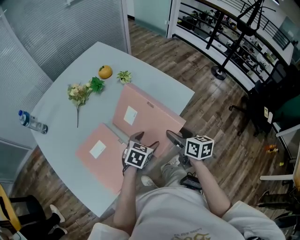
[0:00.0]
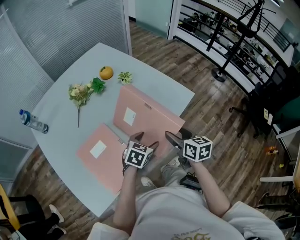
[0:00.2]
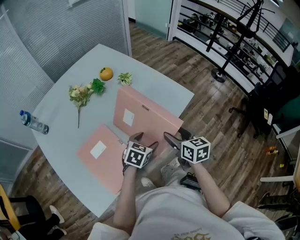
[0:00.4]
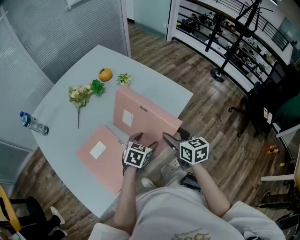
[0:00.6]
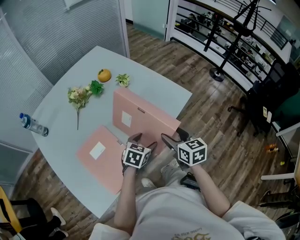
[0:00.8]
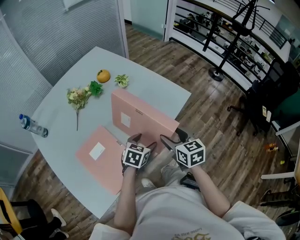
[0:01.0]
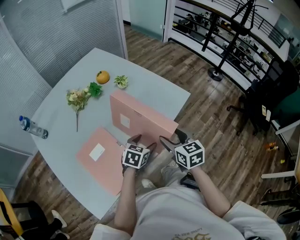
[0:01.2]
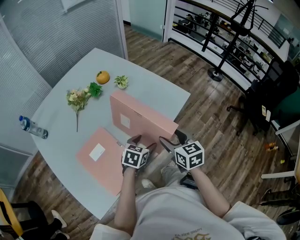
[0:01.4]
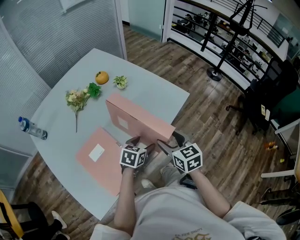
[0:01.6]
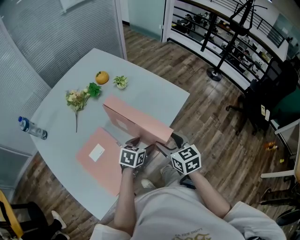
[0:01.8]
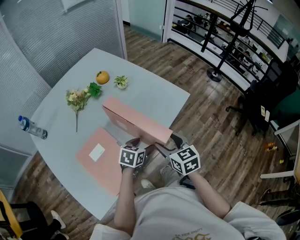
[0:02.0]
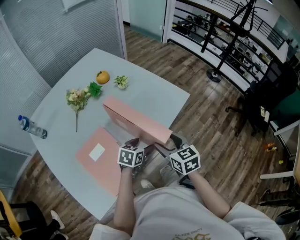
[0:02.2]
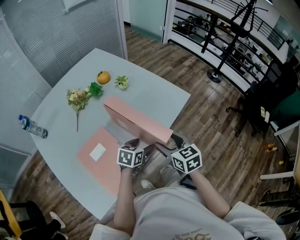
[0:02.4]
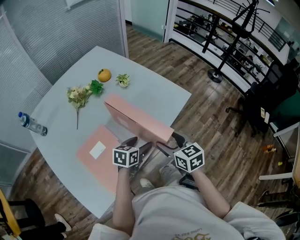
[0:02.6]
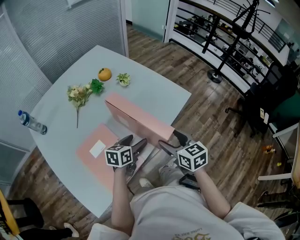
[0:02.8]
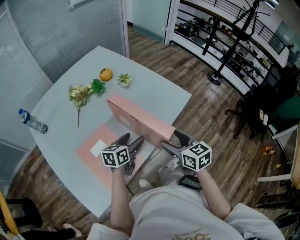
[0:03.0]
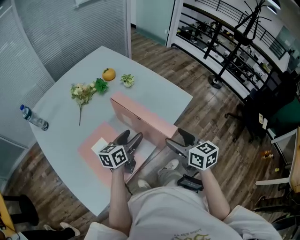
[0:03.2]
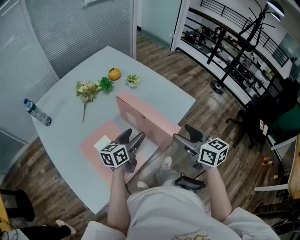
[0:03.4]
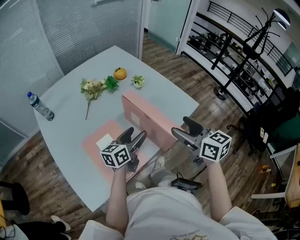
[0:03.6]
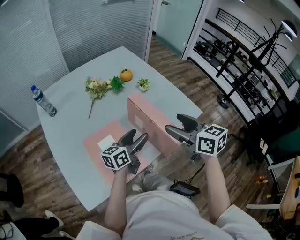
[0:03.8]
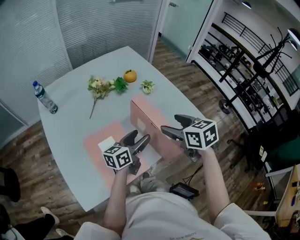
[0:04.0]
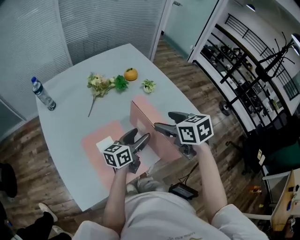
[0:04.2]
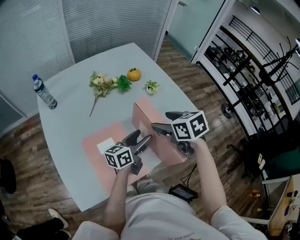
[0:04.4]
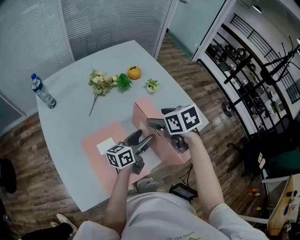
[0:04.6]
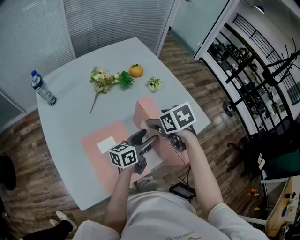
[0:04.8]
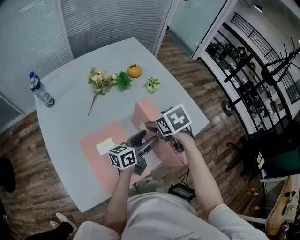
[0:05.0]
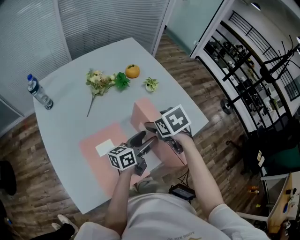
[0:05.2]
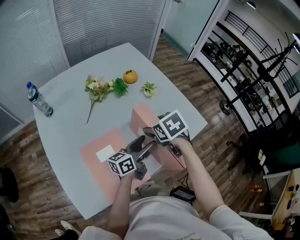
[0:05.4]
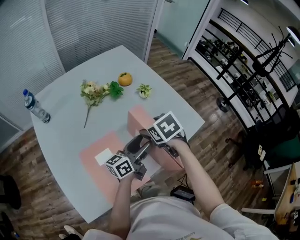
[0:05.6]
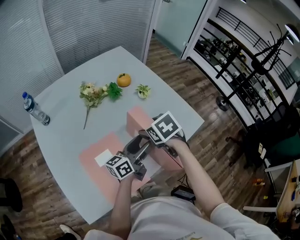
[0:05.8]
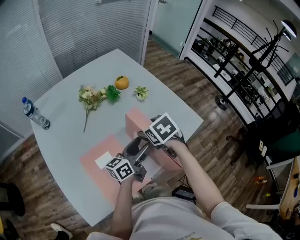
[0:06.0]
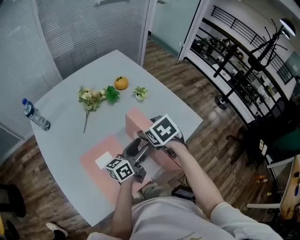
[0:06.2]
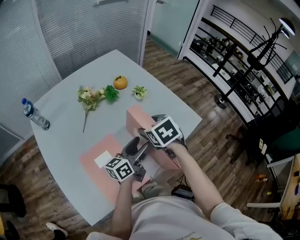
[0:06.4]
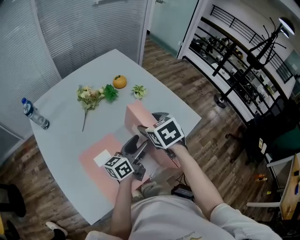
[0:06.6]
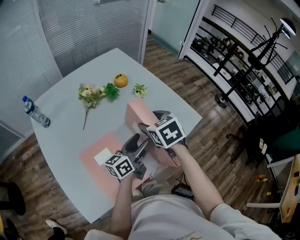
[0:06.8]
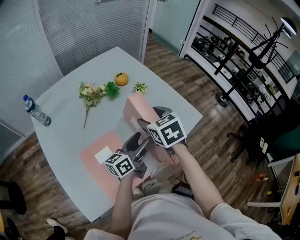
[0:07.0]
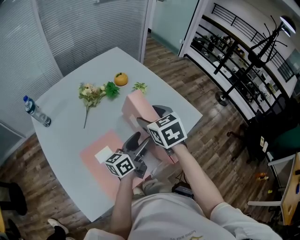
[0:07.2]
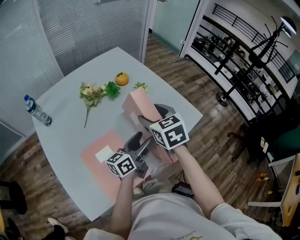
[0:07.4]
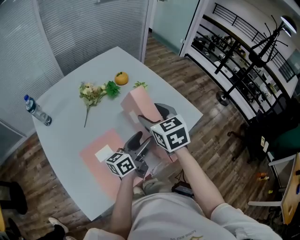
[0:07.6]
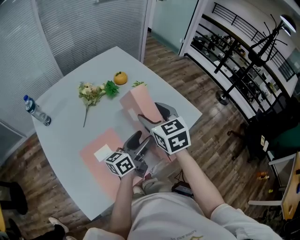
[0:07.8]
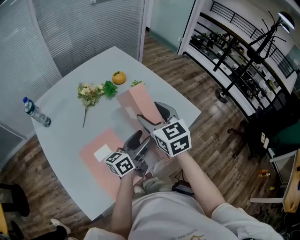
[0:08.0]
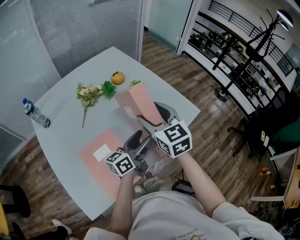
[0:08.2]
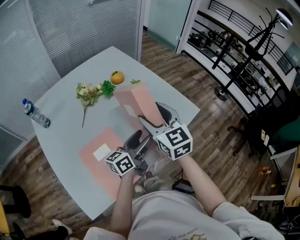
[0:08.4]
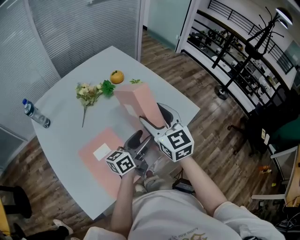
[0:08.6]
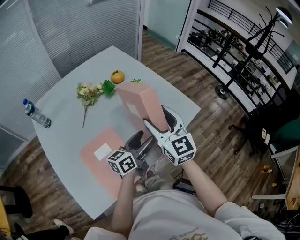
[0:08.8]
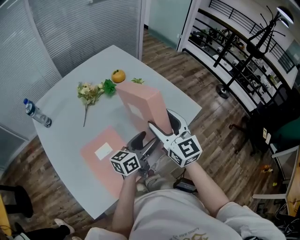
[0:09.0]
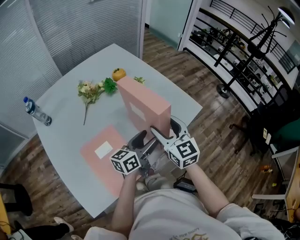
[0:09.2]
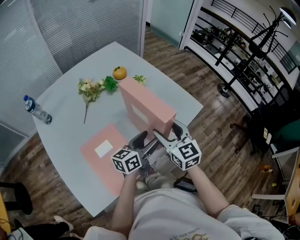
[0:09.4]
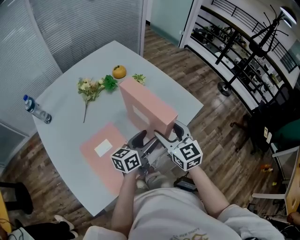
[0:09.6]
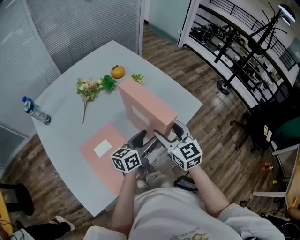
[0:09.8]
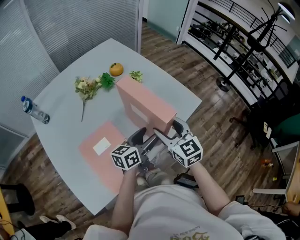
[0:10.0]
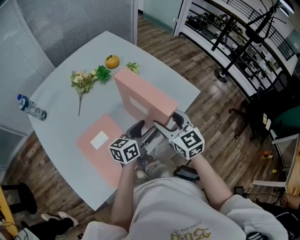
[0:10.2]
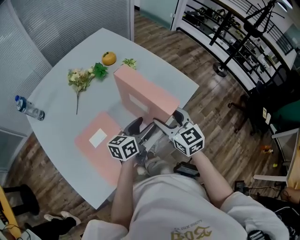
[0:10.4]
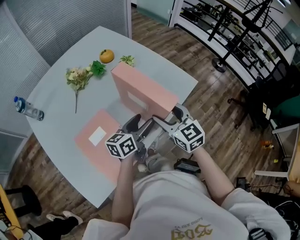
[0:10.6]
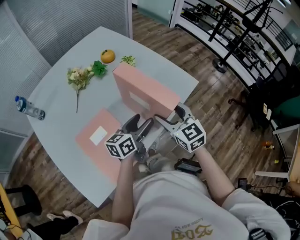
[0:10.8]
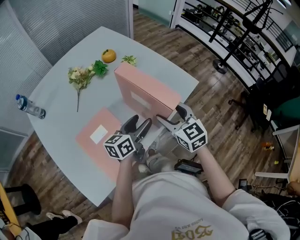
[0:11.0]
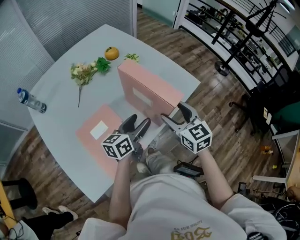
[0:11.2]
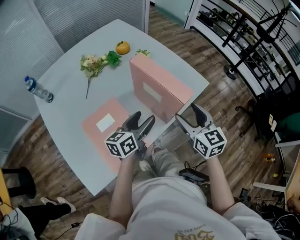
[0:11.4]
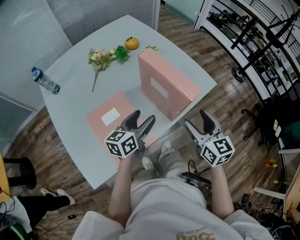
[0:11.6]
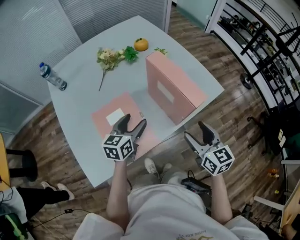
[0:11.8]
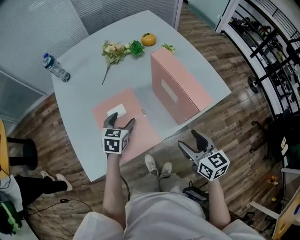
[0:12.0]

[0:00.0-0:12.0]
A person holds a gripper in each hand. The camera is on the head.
0:00.0 to 0:01.6: The right gripper shifts by roughly 5 cm, and changes its angle by some 20 degrees.
0:01.6 to 0:03.0: The left gripper heads to the left, covering some 5 cm, and rotates some 30 degrees.
0:03.0 to 0:04.4: The left gripper moves forward, about 5 cm, and rotates about 30 degrees, while the right gripper travels forward and to the left by approximately 20 cm, and changes its angle by roughly 30 degrees.
0:04.4 to 0:06.0: The right gripper changes place by about 5 cm.
0:06.0 to 0:07.6: The right gripper heads upward, covering about 10 cm, and turns by about 30 degrees.
0:07.6 to 0:09.0: The right gripper shifts approximately 5 cm to the right, and changes its angle by some 30 degrees.
0:09.0 to 0:10.4: The right gripper moves downward, roughly 10 cm.
0:10.4 to 0:12.0: The right gripper moves some 10 cm, and turns by approximately 20 degrees; the left gripper shifts by approximately 20 cm, and tilts its fingers about 30 degrees downward.

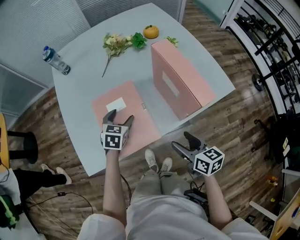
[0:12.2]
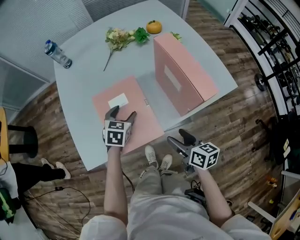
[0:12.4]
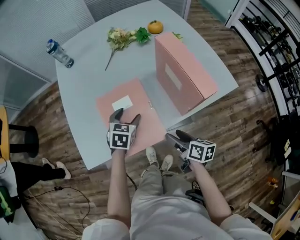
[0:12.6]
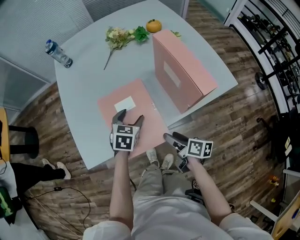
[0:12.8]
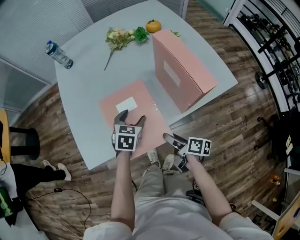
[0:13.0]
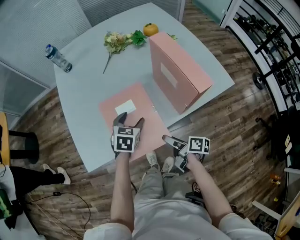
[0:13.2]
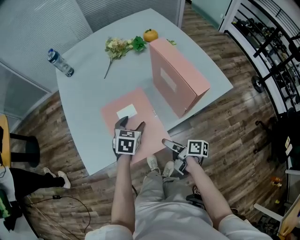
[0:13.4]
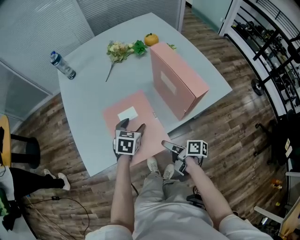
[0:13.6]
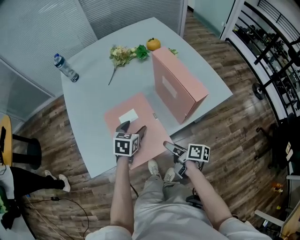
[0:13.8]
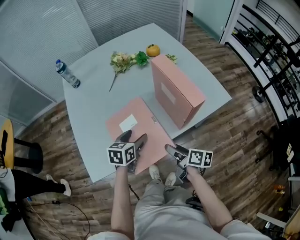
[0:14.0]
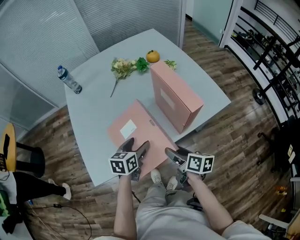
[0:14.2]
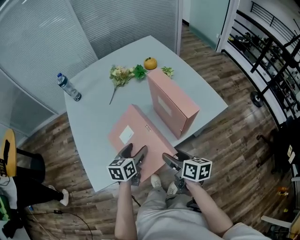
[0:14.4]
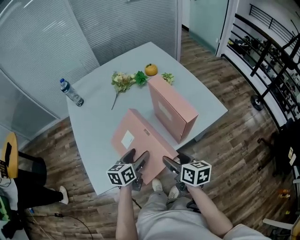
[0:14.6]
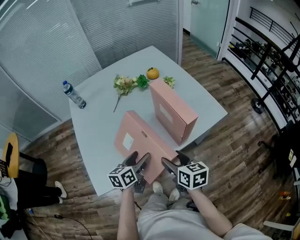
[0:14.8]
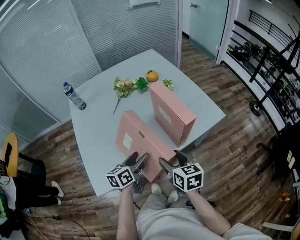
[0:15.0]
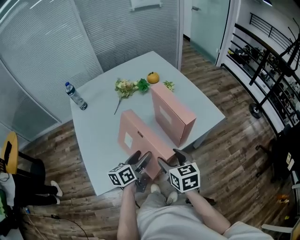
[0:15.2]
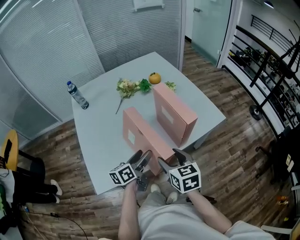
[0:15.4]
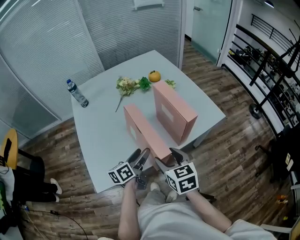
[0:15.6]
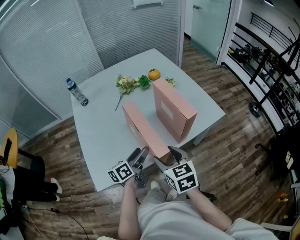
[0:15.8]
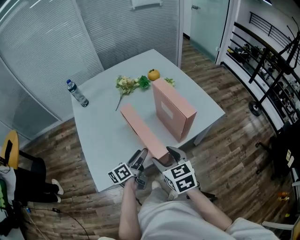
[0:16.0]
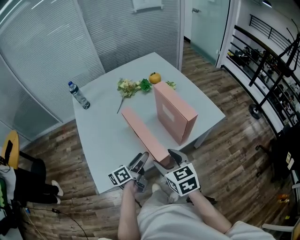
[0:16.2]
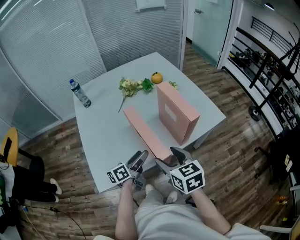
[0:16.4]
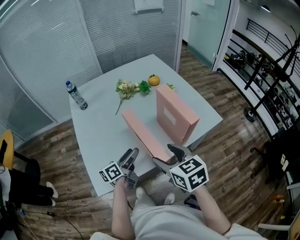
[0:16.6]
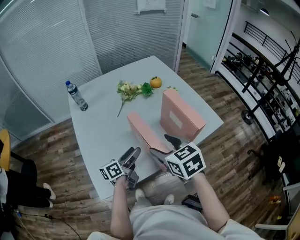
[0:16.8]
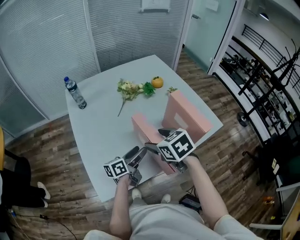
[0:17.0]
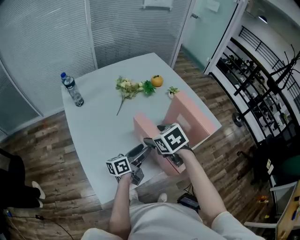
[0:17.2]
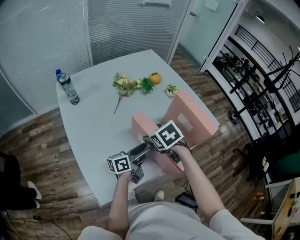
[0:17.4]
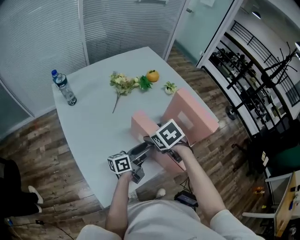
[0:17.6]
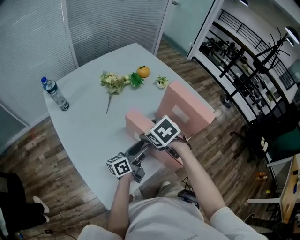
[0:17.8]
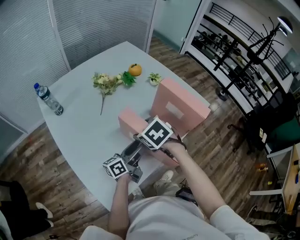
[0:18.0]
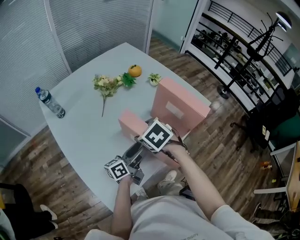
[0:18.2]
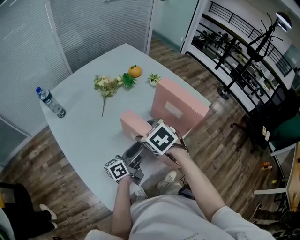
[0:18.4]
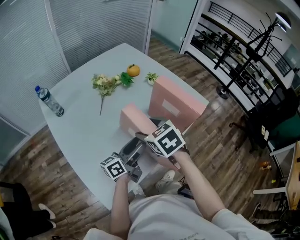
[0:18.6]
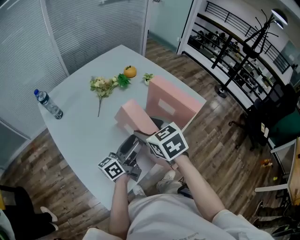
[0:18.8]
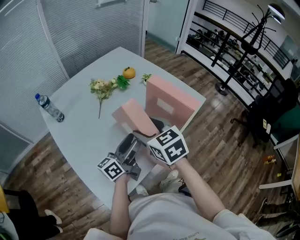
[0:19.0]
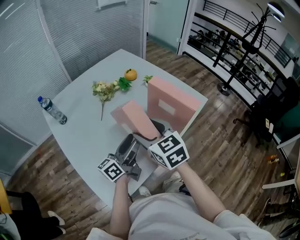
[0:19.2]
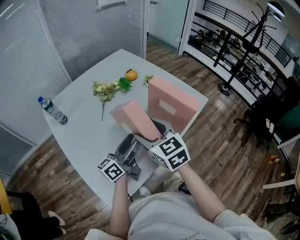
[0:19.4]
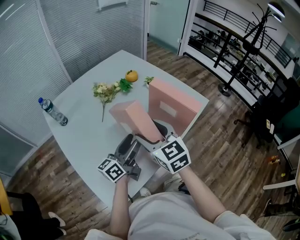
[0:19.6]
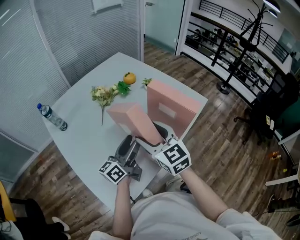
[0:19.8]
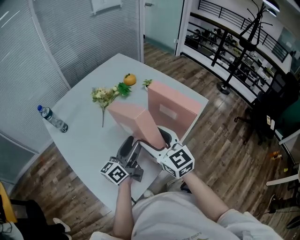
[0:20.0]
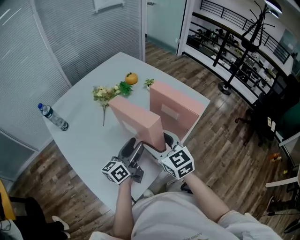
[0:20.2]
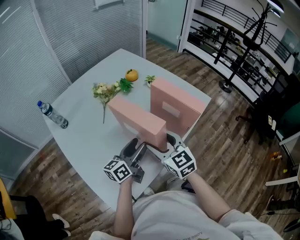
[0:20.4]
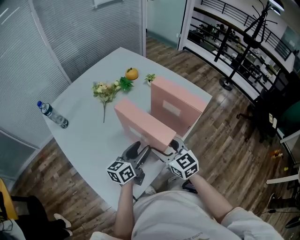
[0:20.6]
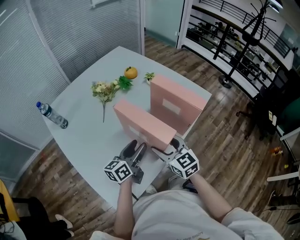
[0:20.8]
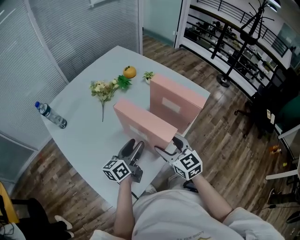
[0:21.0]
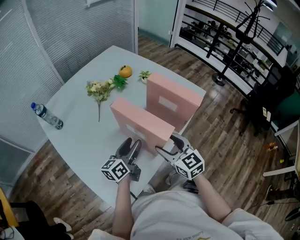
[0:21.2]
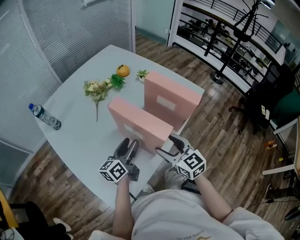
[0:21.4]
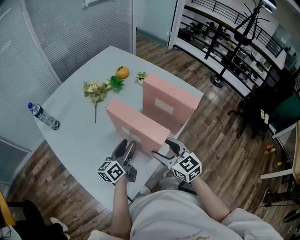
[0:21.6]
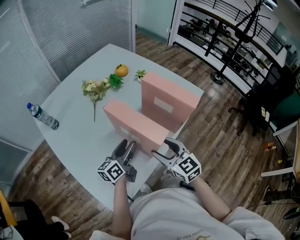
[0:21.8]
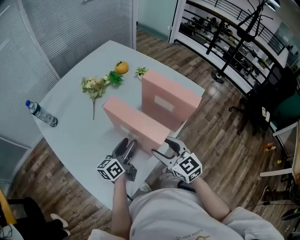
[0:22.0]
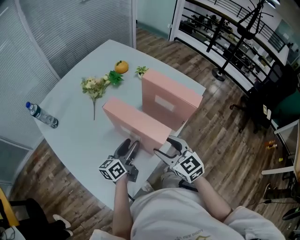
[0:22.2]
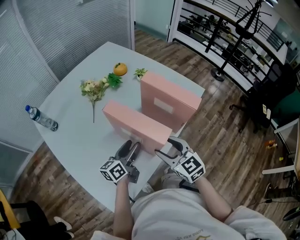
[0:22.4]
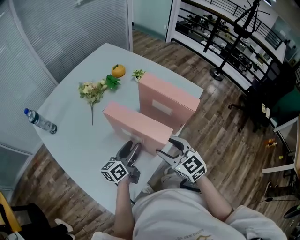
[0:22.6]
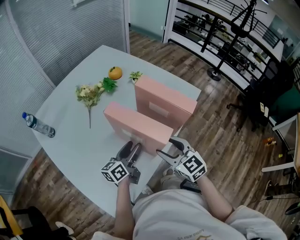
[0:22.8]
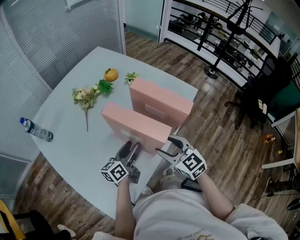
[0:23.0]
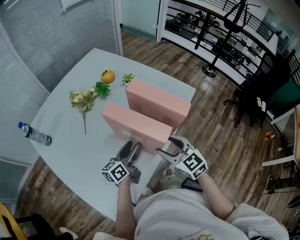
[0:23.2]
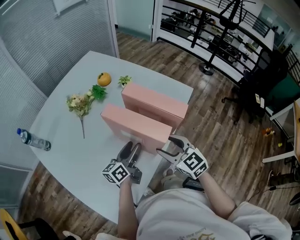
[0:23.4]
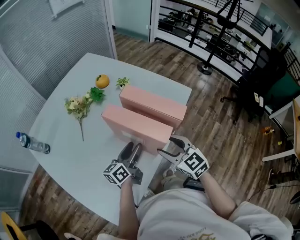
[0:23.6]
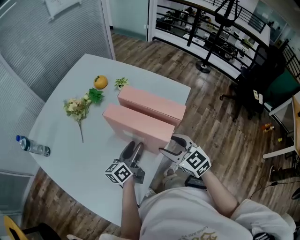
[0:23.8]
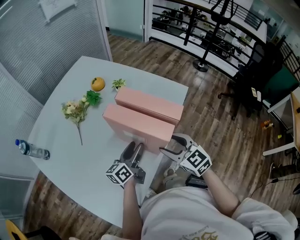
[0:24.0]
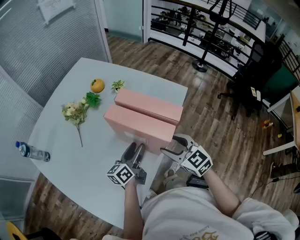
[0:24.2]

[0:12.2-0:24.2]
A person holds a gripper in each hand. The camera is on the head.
0:12.2 to 0:13.8: The right gripper heads downward, covering approximately 10 cm, and rotates around the line of its fingers by some 40 degrees, clockwise from behind, while the left gripper goes some 5 cm backward.
0:13.8 to 0:15.2: The right gripper shifts roughly 15 cm upward, and rotates around the line of its fingers by some 50 degrees, counterclockwise from behind; the left gripper goes approximately 10 cm upward and backward, and rotates approximately 40 degrees.
0:15.2 to 0:16.6: The left gripper shifts about 5 cm to the left; the right gripper is displaced upward and to the left by approximately 10 cm.
0:16.6 to 0:18.2: The left gripper changes its angle by some 30 degrees, while the right gripper moves forward, to the left and downward, about 20 cm, and changes its angle by approximately 30 degrees.
0:18.2 to 0:19.8: The grippers both shift upward by about 10 cm. The right gripper tilts its fingers about 50 degrees upward.
0:19.8 to 0:21.2: The left gripper heads downward, covering about 5 cm. The right gripper heads downward and to the right, covering some 10 cm.
0:21.2 to 0:22.6: The left gripper ends up some 5 cm from where it was.
0:22.6 to 0:24.2: The left gripper shifts about 10 cm to the right and forward; the right gripper goes roughly 5 cm to the right.
